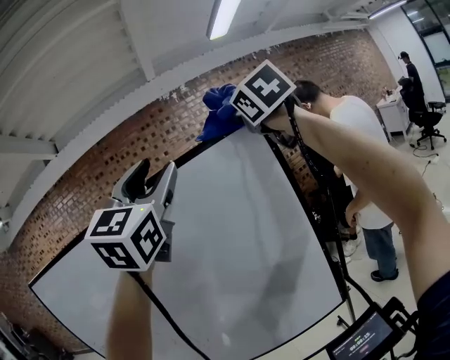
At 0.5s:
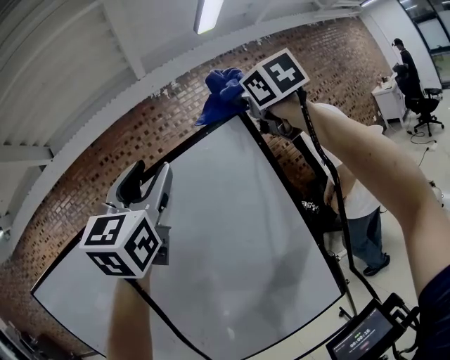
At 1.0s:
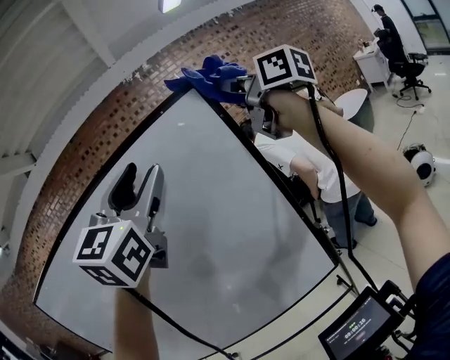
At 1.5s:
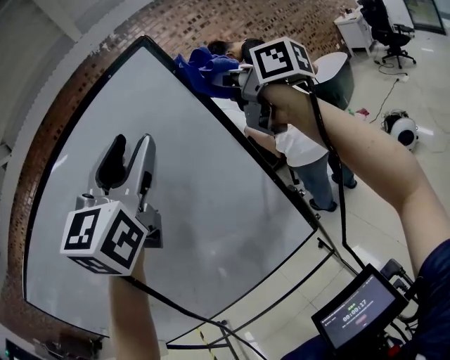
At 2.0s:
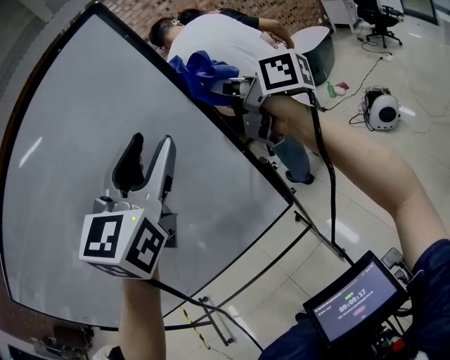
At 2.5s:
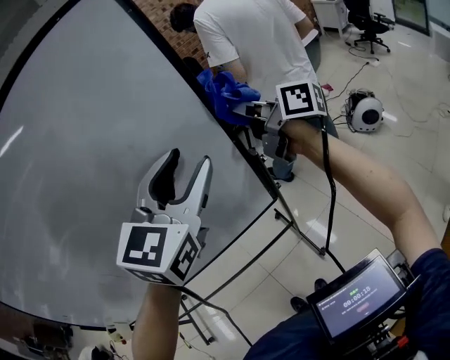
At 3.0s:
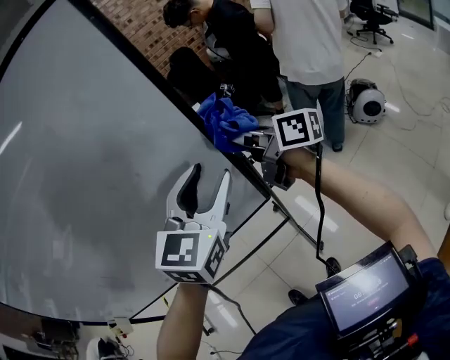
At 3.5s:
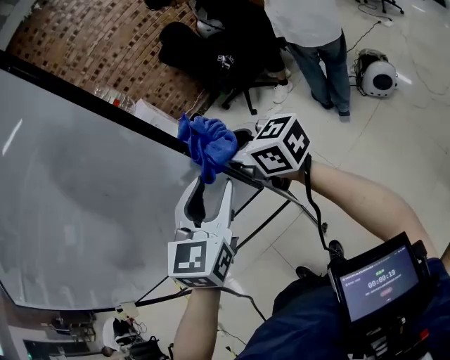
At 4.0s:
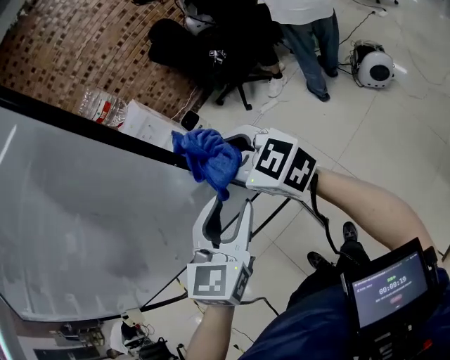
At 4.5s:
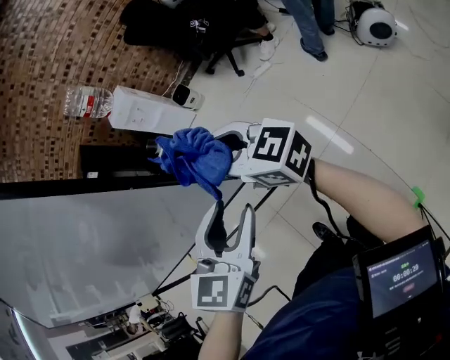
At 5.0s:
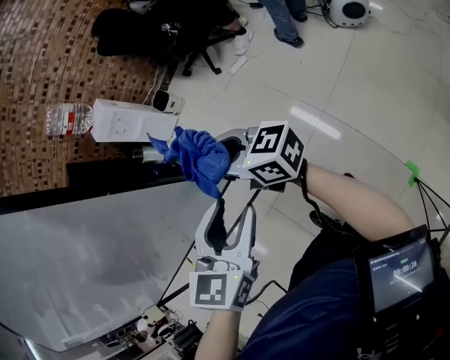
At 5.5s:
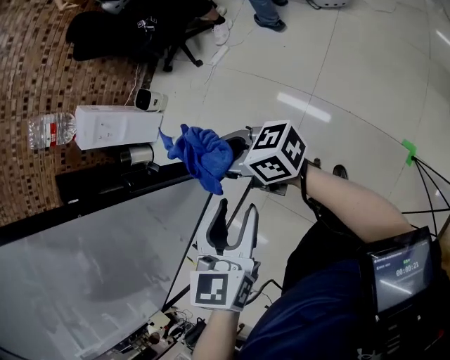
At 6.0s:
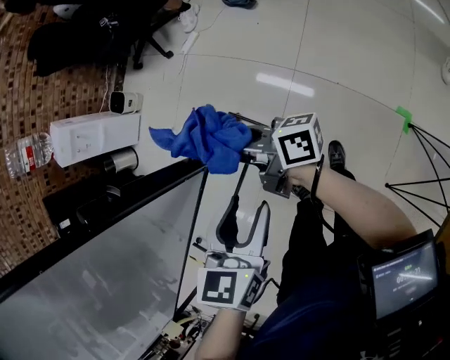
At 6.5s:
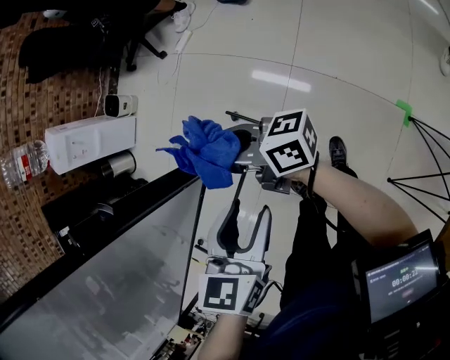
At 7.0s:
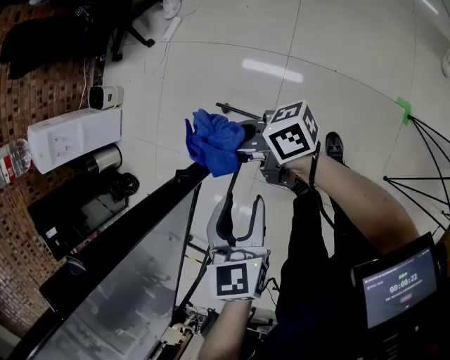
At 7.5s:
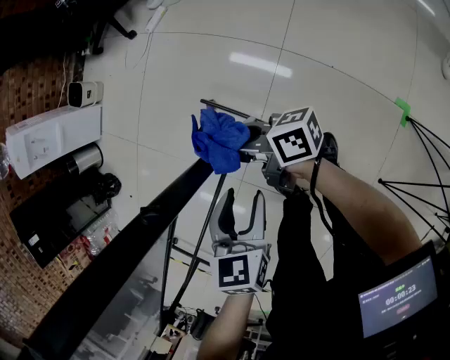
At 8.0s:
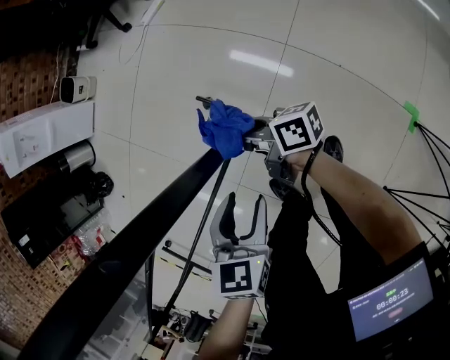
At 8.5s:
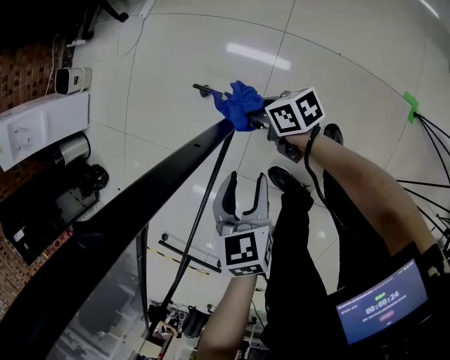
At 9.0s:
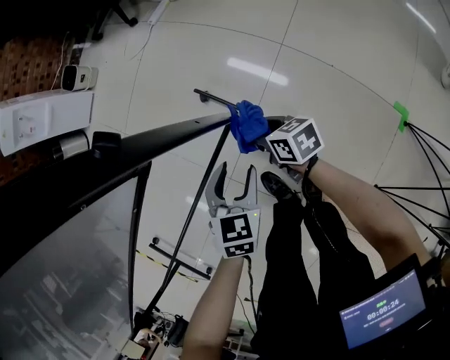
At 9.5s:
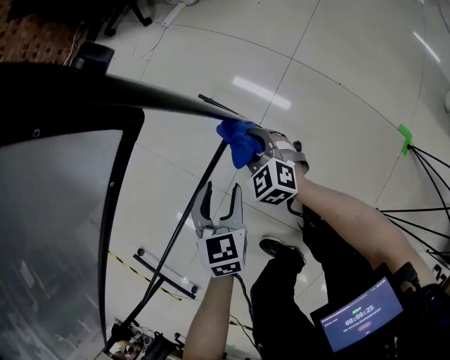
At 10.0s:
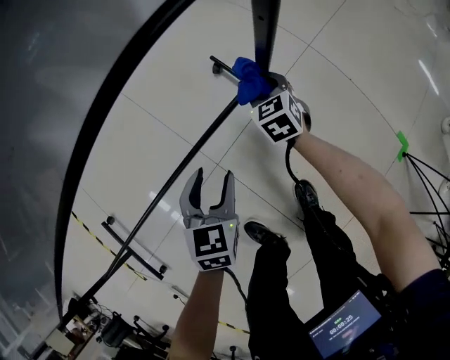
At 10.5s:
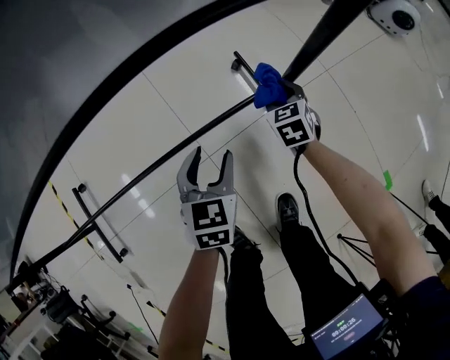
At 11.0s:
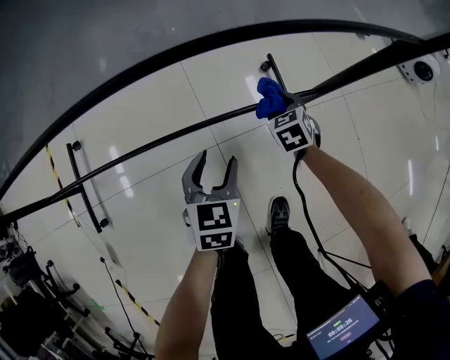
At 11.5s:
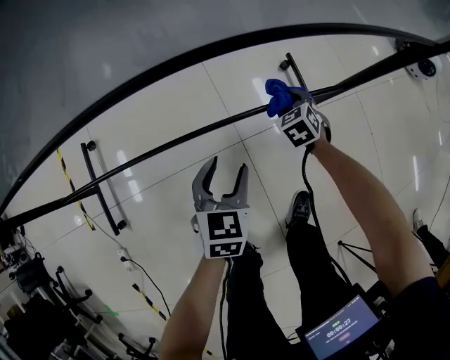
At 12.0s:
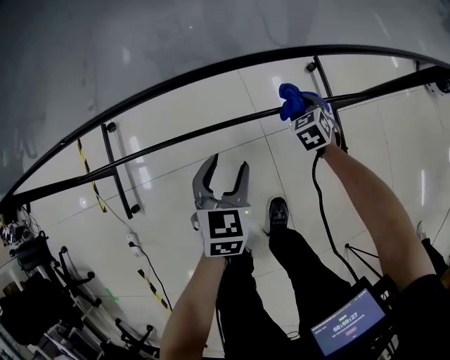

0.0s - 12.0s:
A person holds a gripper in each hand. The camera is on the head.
0.0s - 2.0s: The right gripper moves downward, approximately 30 cm, and rotates around the line of its fingers by approximately 60 degrees, clockwise from behind, while the left gripper goes approximately 25 cm downward and to the right, and changes its angle by approximately 30 degrees.
2.0s - 4.0s: Both grippers move downward, roughly 25 cm. The left gripper changes its angle by about 30 degrees. Meanwhile the right gripper rotates approximately 50 degrees.
4.0s - 6.0s: Both grippers move downward, about 25 cm. The right gripper twists about 70 degrees clockwise, seen from behind. The left gripper swivels roughly 30 degrees.
6.0s - 8.0s: Both grippers travel together downward, roughly 30 cm.
8.0s - 10.0s: The right gripper travels downward by some 10 cm, and angles its fingers downward, by about 40 degrees; the left gripper moves to the left, backward and downward, some 20 cm.
10.0s - 12.0s: The grippers both shift to the left by roughly 25 cm. The left gripper turns by approximately 20 degrees; the right gripper rotates some 30 degrees.

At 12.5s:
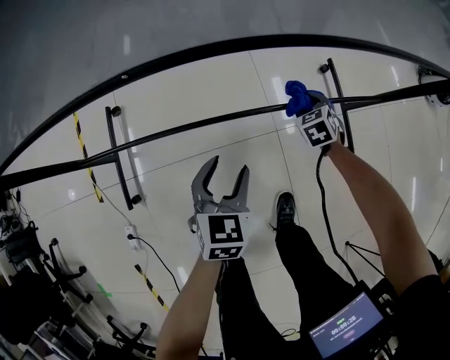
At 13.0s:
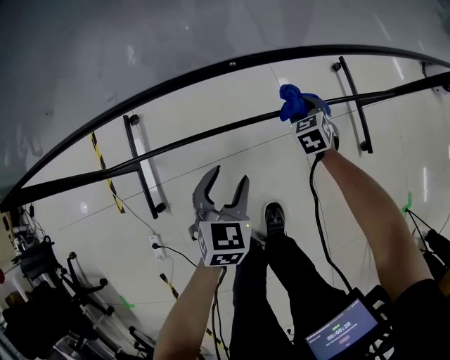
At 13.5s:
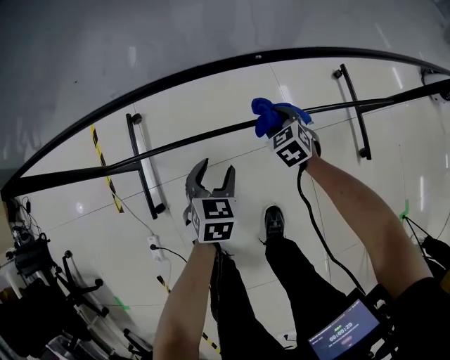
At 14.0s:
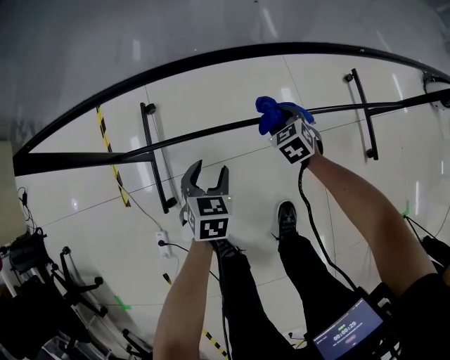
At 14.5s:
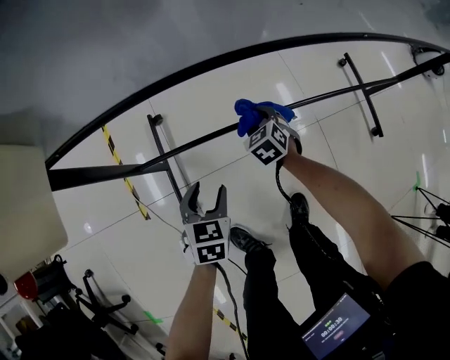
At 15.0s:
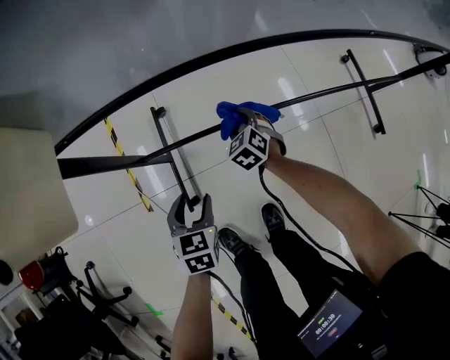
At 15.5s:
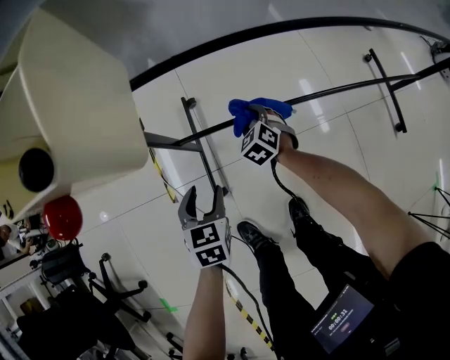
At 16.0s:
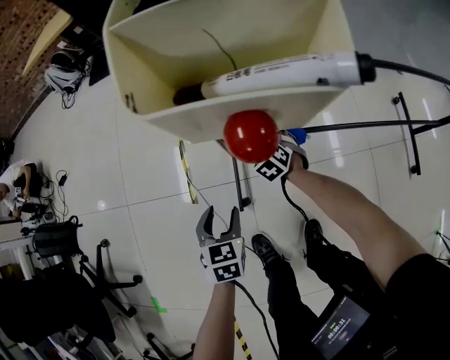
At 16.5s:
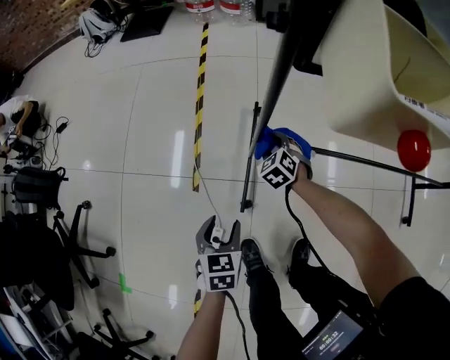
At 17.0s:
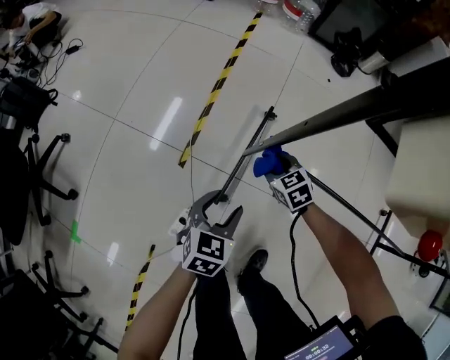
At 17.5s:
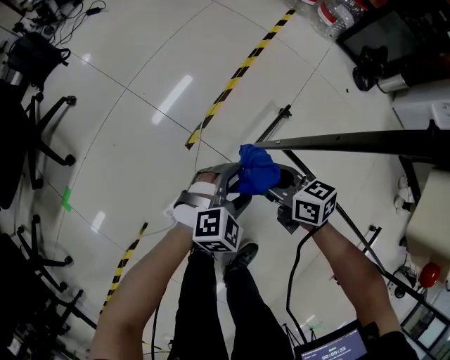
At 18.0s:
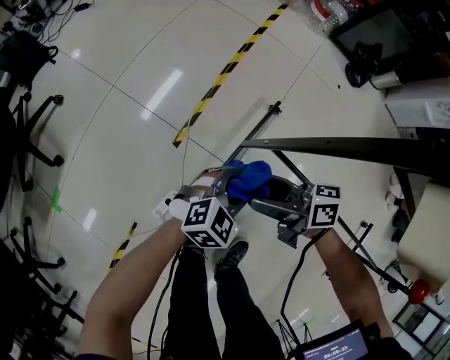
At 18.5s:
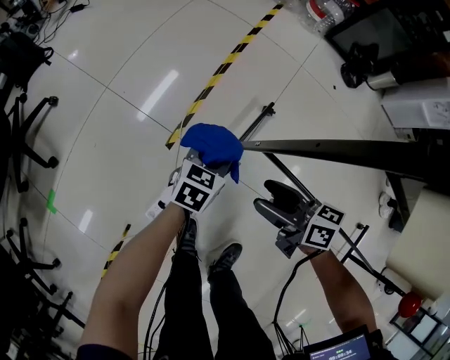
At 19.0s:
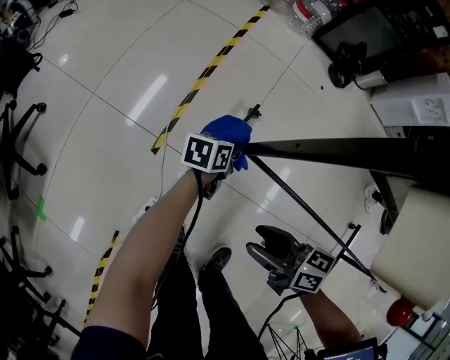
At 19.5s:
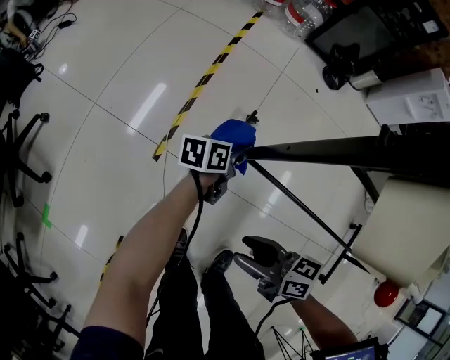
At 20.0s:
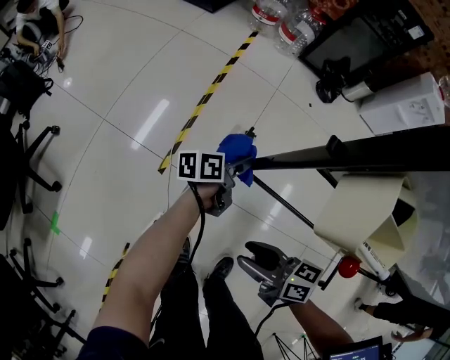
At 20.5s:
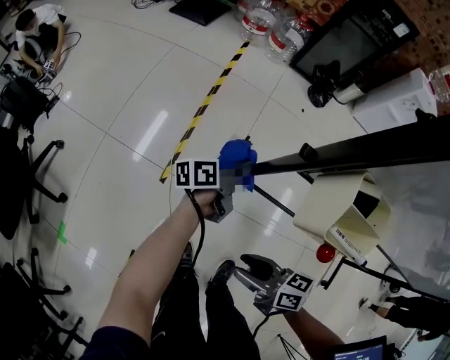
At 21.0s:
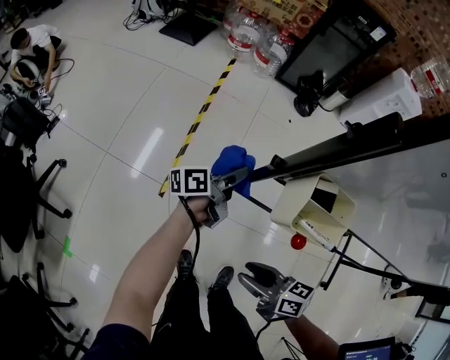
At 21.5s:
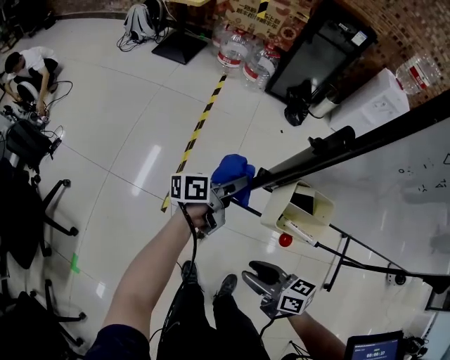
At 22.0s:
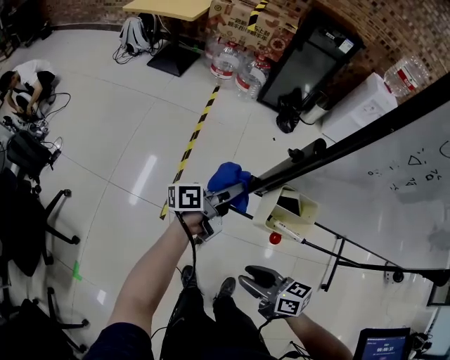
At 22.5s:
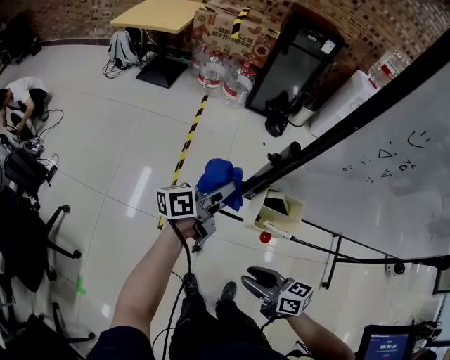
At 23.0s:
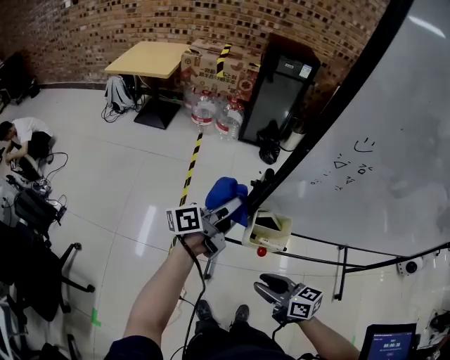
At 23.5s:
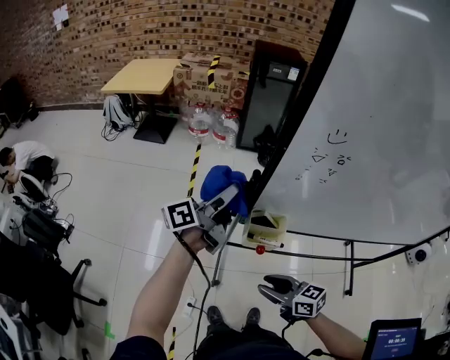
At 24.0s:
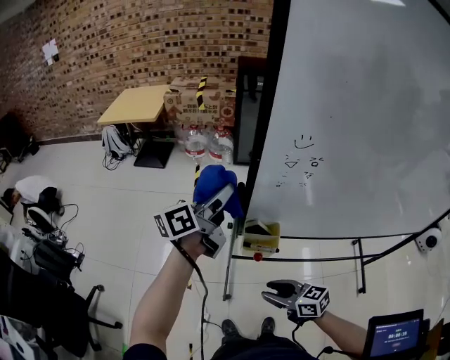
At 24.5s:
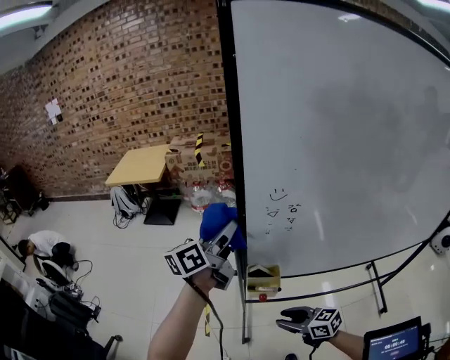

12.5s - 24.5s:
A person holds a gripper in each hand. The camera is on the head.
12.5s - 14.5s: The grippers both shift to the left by about 35 cm.
14.5s - 16.5s: The right gripper goes approximately 30 cm to the left, and swivels roughly 30 degrees; the left gripper moves to the left and backward, some 25 cm, and changes its angle by approximately 30 degrees.
16.5s - 18.5s: The left gripper ends up approximately 15 cm from where it was; the right gripper shifts some 15 cm upward, rotates some 70 degrees, and opens.
18.5s - 20.5s: The left gripper travels upward and to the right by approximately 20 cm, and twists about 50 degrees counterclockwise, seen from behind. Meanwhile the right gripper goes approximately 20 cm backward and upward.
20.5s - 22.5s: The right gripper heads upward, covering about 15 cm, while the left gripper shifts roughly 25 cm upward, and changes its angle by approximately 20 degrees.
22.5s - 24.5s: The left gripper heads upward, covering some 30 cm. The right gripper heads upward, covering approximately 10 cm.

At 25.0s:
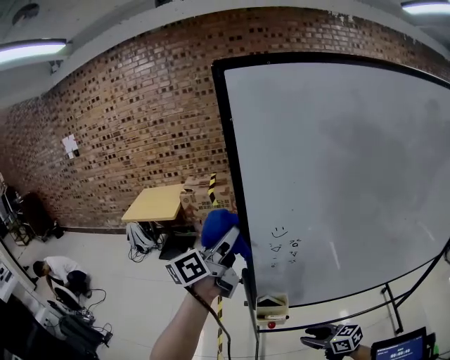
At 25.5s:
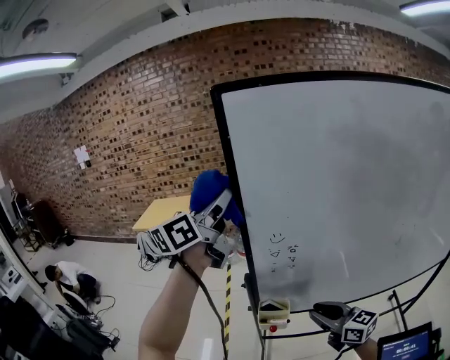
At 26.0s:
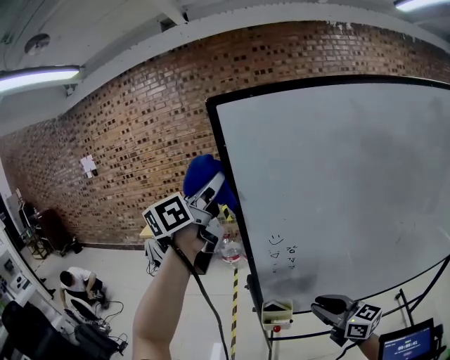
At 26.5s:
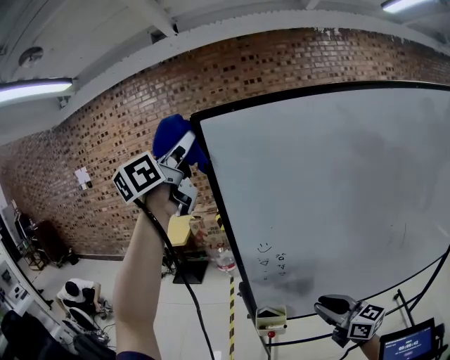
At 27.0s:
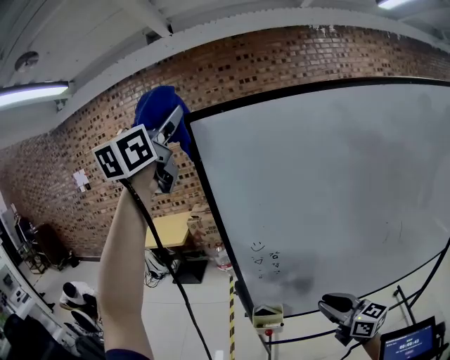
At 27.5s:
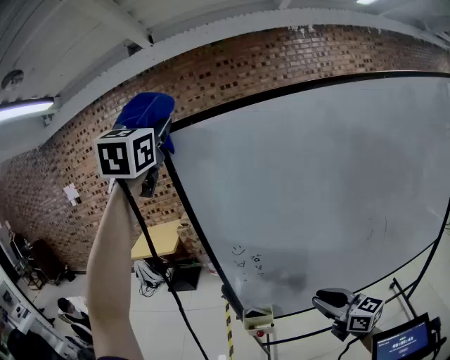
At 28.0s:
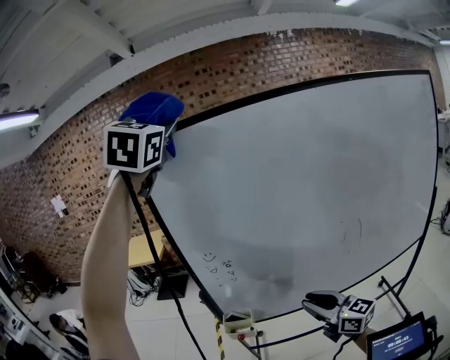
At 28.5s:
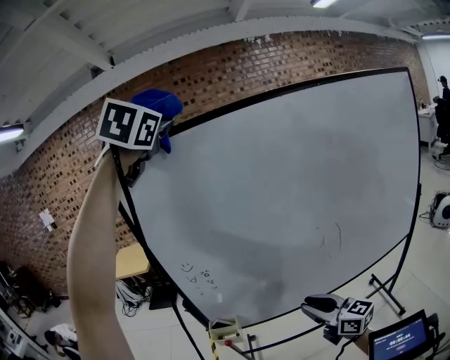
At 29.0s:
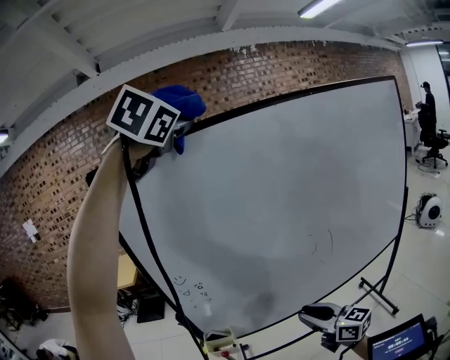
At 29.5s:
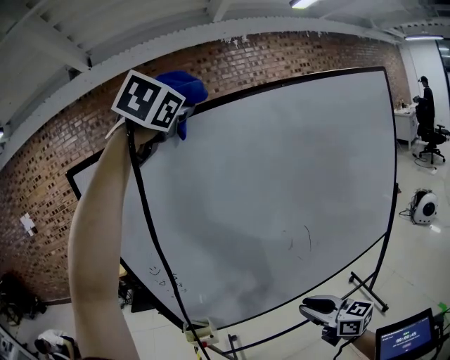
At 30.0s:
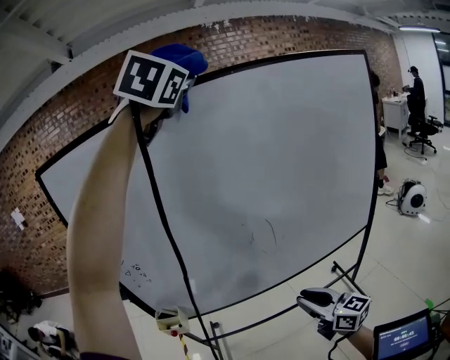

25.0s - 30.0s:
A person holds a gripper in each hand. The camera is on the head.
25.0s - 27.5s: The left gripper goes approximately 40 cm upward, and twists roughly 70 degrees clockwise, seen from behind. The right gripper moves upward and to the right, roughly 25 cm, and swivels about 40 degrees.
27.5s - 30.0s: The left gripper heads to the right, covering roughly 50 cm, and rotates roughly 30 degrees; the right gripper travels to the right and backward by some 30 cm.
